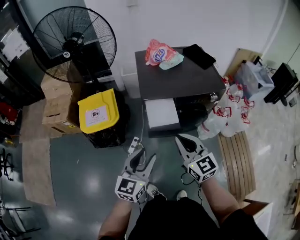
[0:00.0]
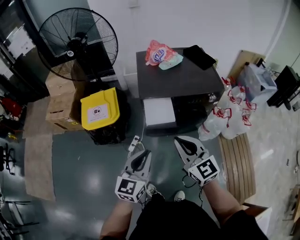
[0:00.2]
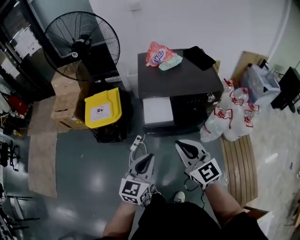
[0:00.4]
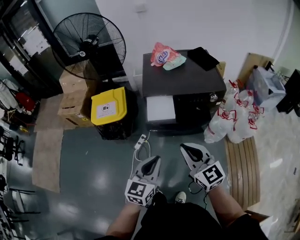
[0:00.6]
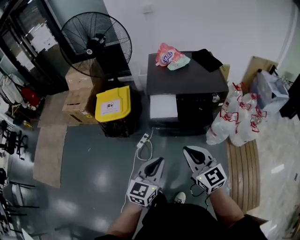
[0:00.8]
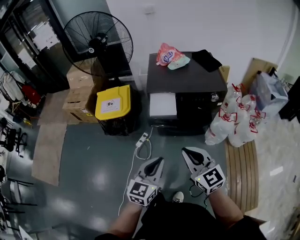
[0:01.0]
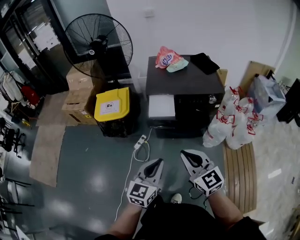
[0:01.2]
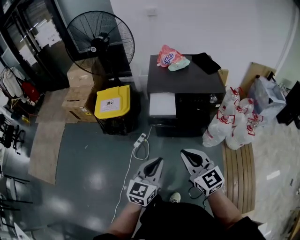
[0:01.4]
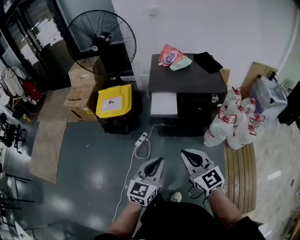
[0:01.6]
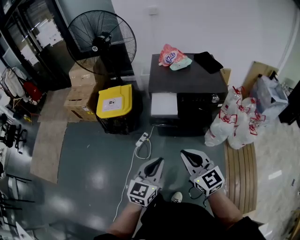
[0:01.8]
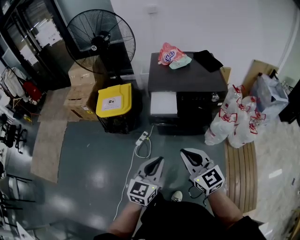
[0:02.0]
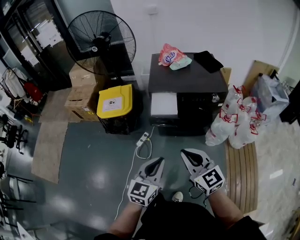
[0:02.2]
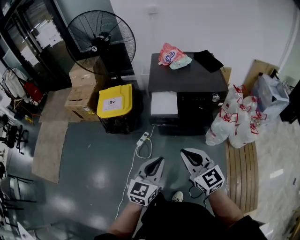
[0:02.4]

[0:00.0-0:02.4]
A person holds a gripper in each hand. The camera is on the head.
0:00.0 to 0:01.2: The two grippers go approximately 20 cm backward and to the right. The left gripper closes.
0:01.2 to 0:02.4: Both grippers stay about where they are.

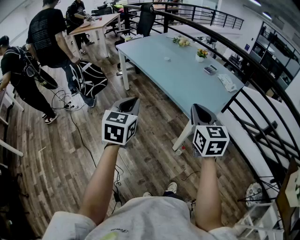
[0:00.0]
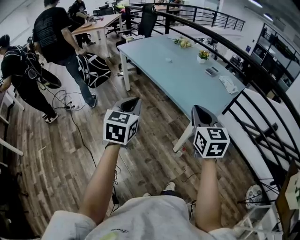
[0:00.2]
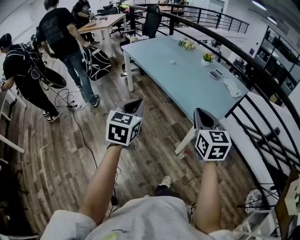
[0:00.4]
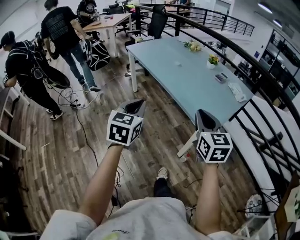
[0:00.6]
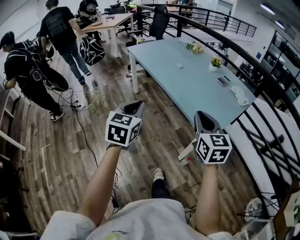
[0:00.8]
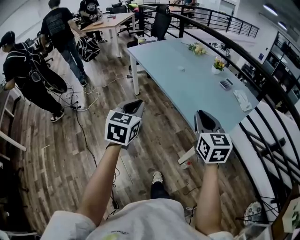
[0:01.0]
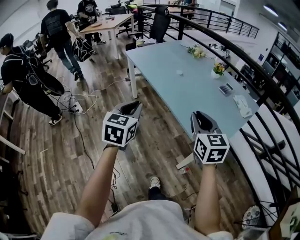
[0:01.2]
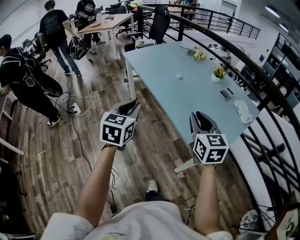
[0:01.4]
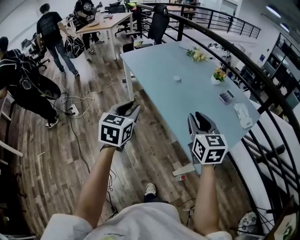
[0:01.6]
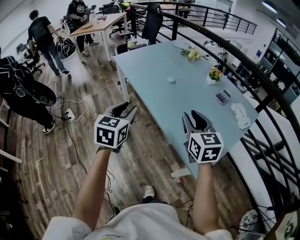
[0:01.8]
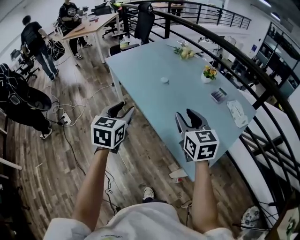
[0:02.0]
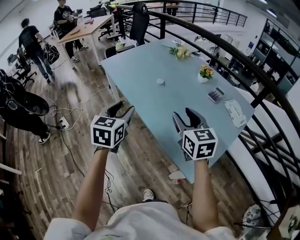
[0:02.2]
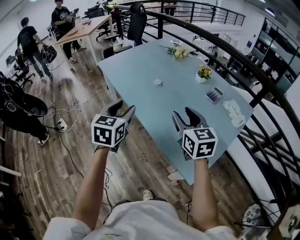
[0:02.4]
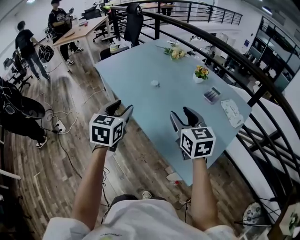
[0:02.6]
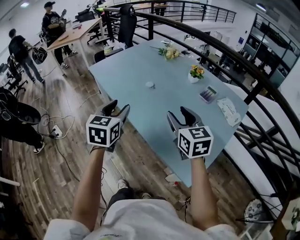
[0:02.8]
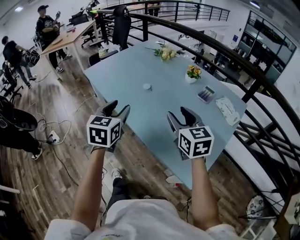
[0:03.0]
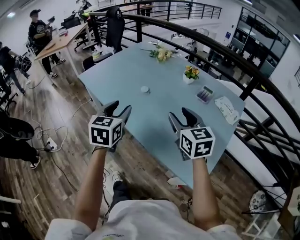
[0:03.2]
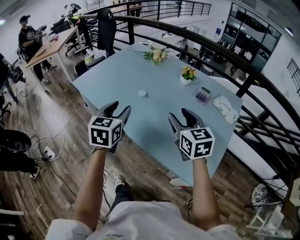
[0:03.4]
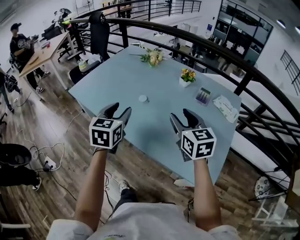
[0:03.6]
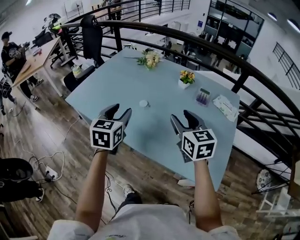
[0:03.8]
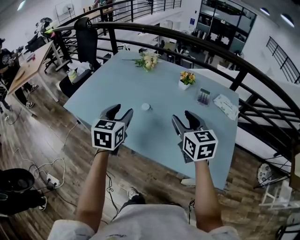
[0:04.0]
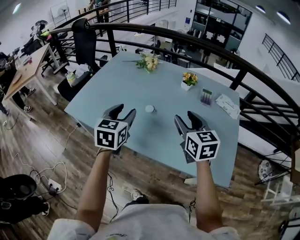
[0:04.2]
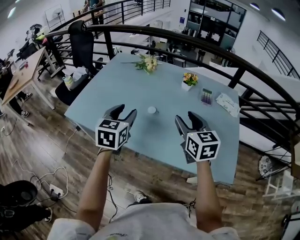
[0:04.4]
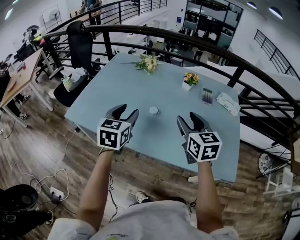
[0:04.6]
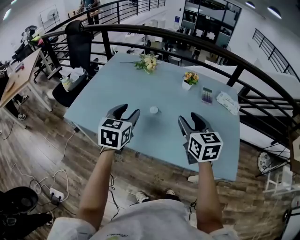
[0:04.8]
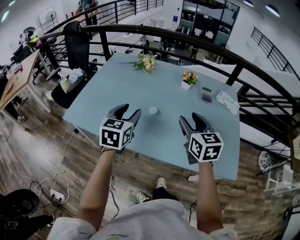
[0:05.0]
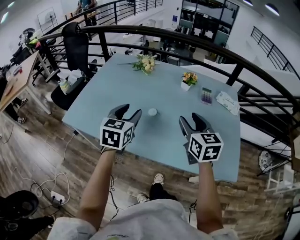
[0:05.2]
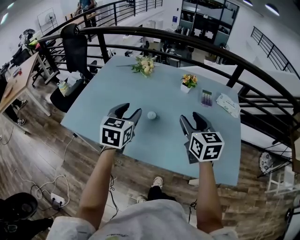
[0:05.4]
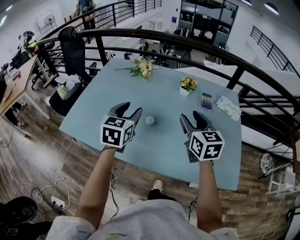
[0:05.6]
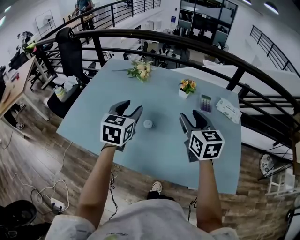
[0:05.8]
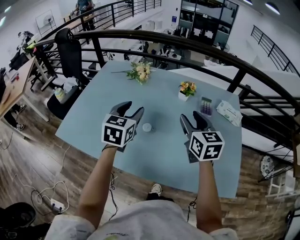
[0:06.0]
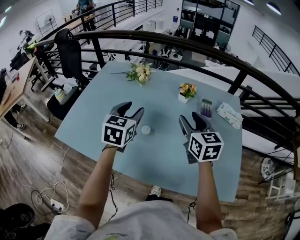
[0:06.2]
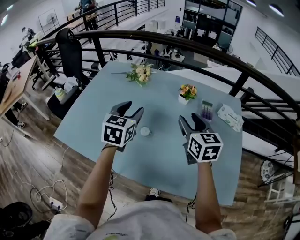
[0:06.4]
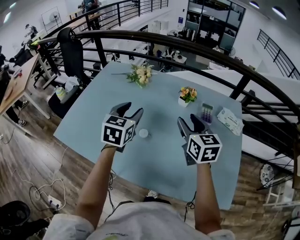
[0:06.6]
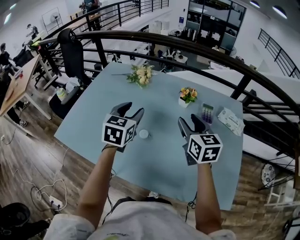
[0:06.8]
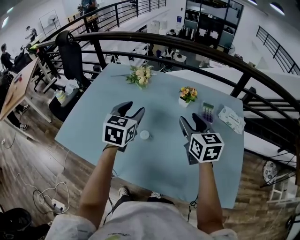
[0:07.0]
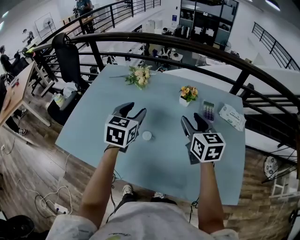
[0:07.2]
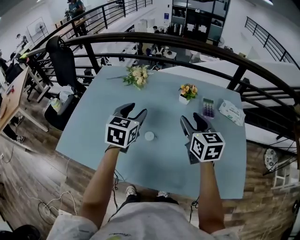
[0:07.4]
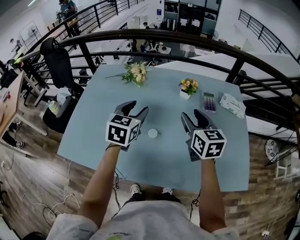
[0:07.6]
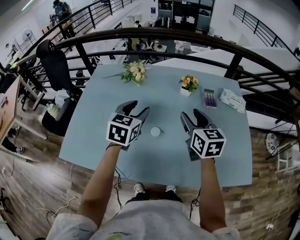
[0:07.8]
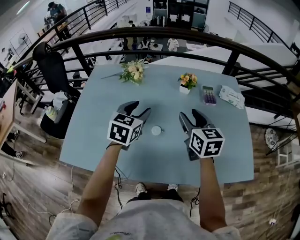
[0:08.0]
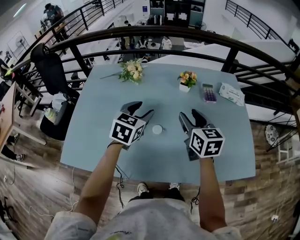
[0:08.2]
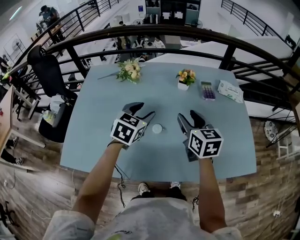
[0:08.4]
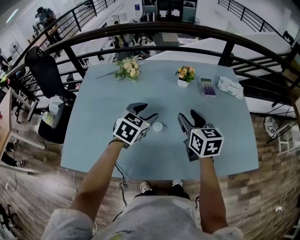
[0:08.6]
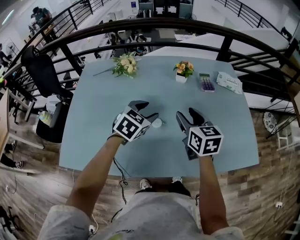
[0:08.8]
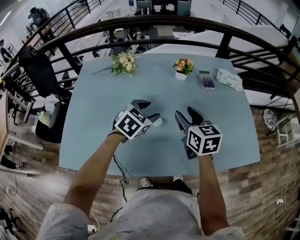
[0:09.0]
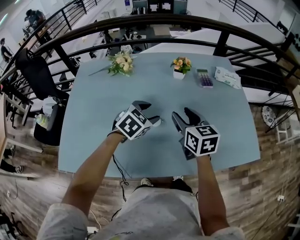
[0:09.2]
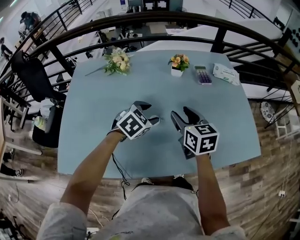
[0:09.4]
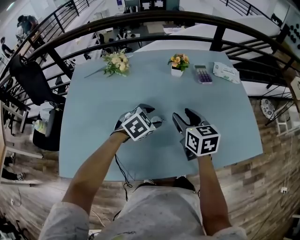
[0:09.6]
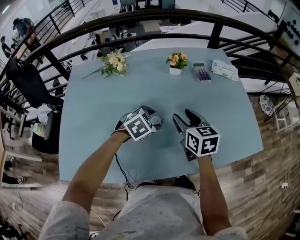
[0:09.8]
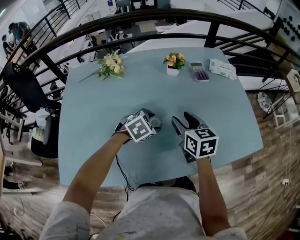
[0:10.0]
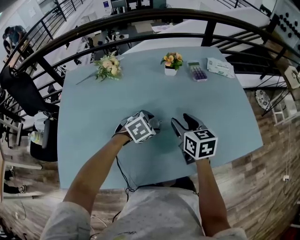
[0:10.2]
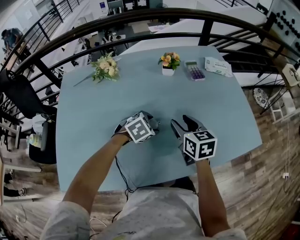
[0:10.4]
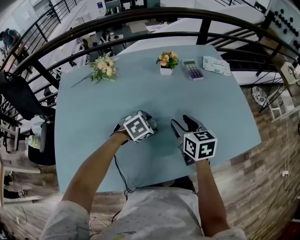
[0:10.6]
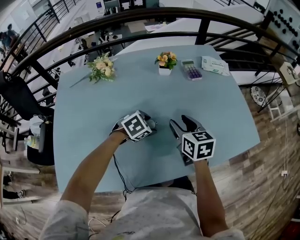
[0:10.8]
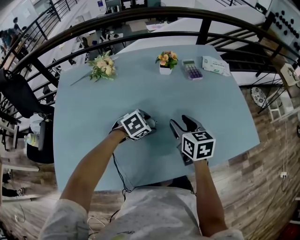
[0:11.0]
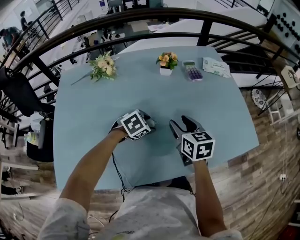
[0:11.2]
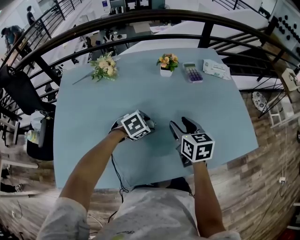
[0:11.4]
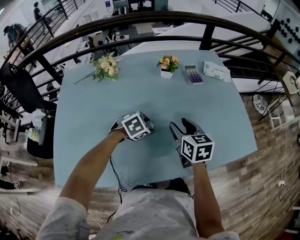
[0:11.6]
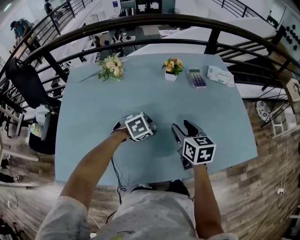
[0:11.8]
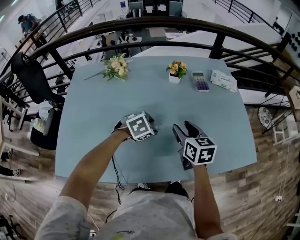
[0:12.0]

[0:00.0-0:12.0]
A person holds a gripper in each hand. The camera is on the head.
0:00.0 to 0:01.6: The grippers both shift forward by some 25 cm. The left gripper opens up.
0:01.6 to 0:03.0: The grippers both shift forward and to the right by approximately 15 cm. The left gripper opens; the right gripper opens up.
0:03.0 to 0:04.4: The left gripper changes place by approximately 25 cm, and rotates approximately 30 degrees; the right gripper moves approximately 15 cm, and swivels some 30 degrees.
0:04.4 to 0:06.0: Both grippers move forward, some 15 cm.
0:06.0 to 0:07.6: The left gripper shifts roughly 5 cm forward.
0:07.6 to 0:09.0: The right gripper travels downward by roughly 5 cm; the left gripper heads downward, covering some 10 cm, and swivels about 40 degrees.
0:09.0 to 0:10.4: The right gripper travels downward by approximately 5 cm. Meanwhile the left gripper travels downward by roughly 10 cm, and turns by about 30 degrees.
0:10.4 to 0:12.0: The grippers stay close to where they were, moving slightly.

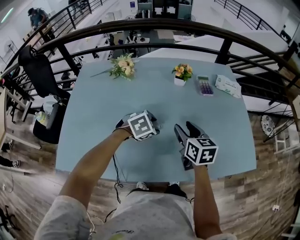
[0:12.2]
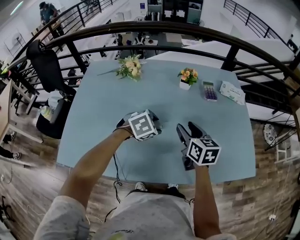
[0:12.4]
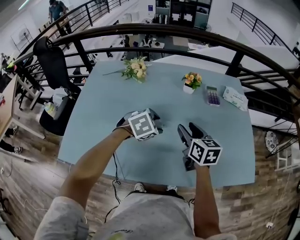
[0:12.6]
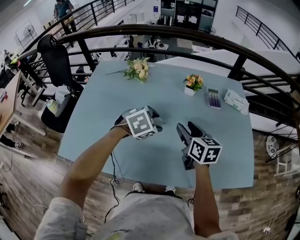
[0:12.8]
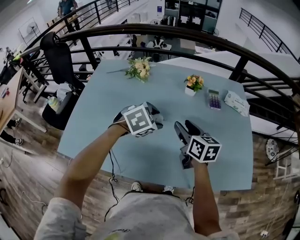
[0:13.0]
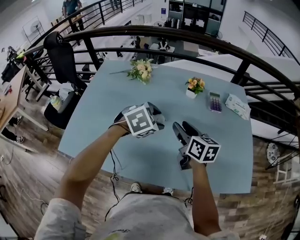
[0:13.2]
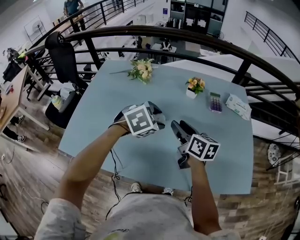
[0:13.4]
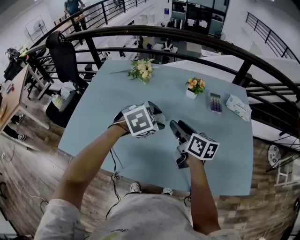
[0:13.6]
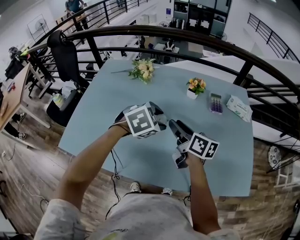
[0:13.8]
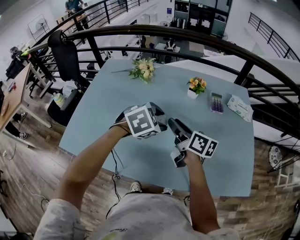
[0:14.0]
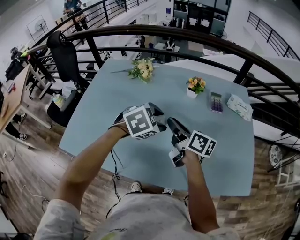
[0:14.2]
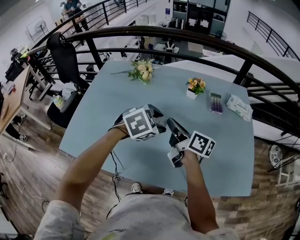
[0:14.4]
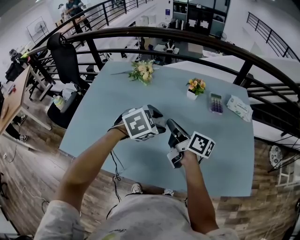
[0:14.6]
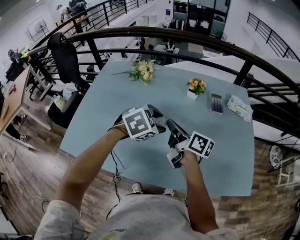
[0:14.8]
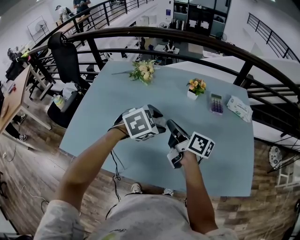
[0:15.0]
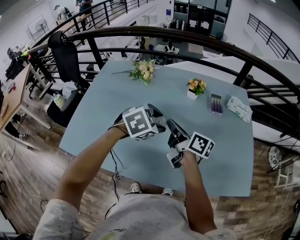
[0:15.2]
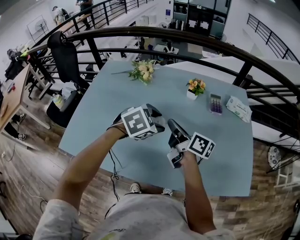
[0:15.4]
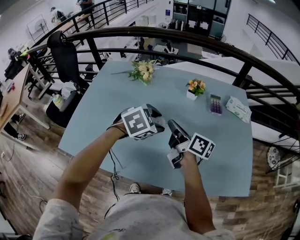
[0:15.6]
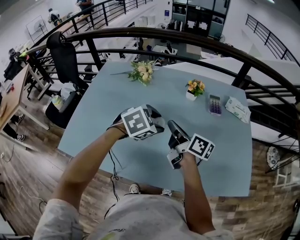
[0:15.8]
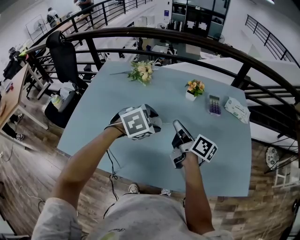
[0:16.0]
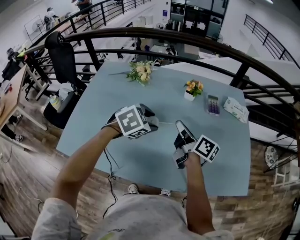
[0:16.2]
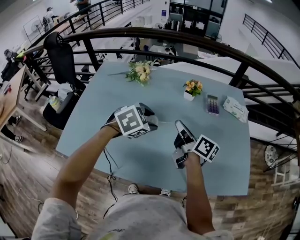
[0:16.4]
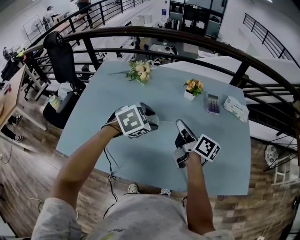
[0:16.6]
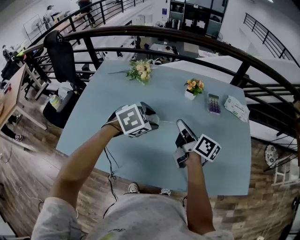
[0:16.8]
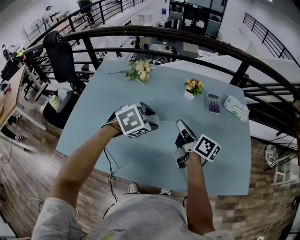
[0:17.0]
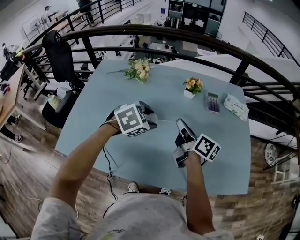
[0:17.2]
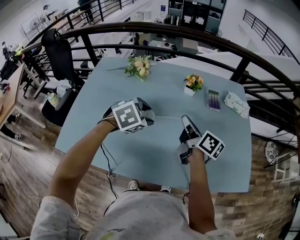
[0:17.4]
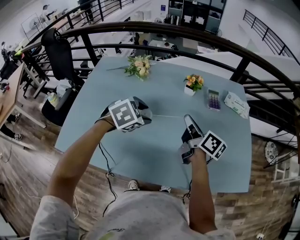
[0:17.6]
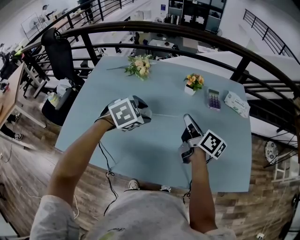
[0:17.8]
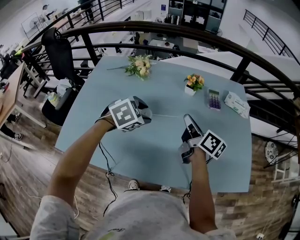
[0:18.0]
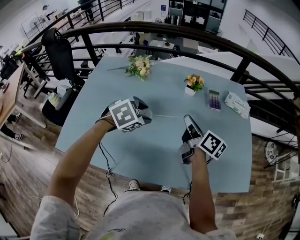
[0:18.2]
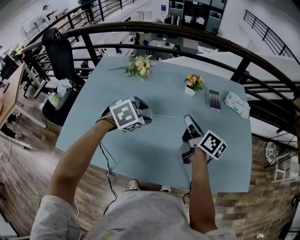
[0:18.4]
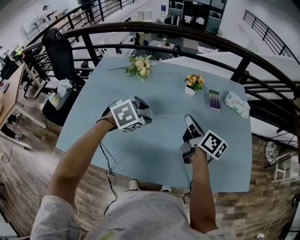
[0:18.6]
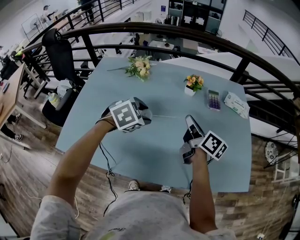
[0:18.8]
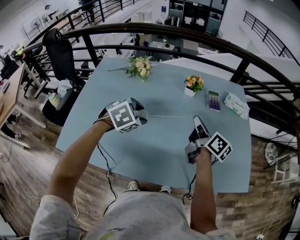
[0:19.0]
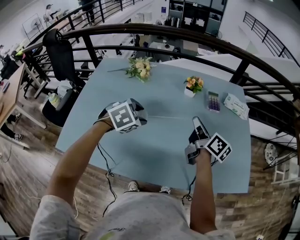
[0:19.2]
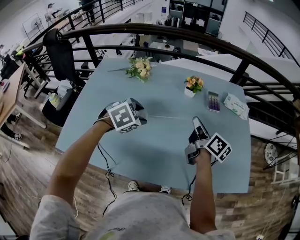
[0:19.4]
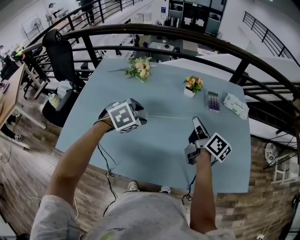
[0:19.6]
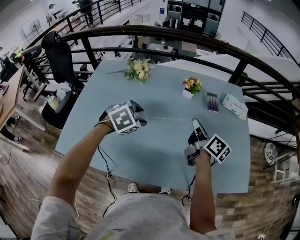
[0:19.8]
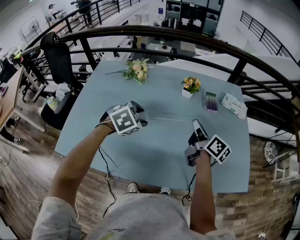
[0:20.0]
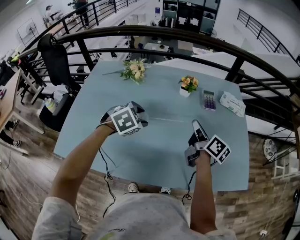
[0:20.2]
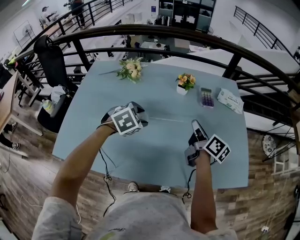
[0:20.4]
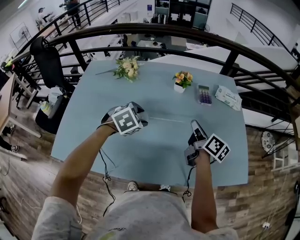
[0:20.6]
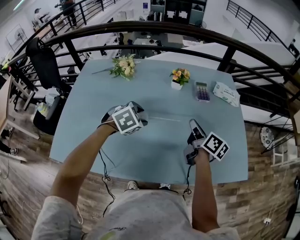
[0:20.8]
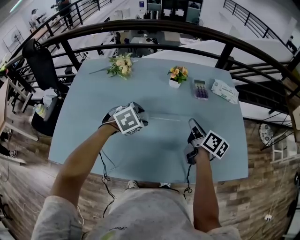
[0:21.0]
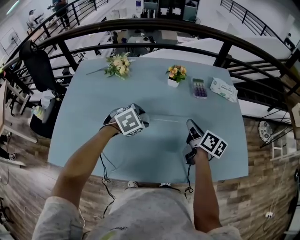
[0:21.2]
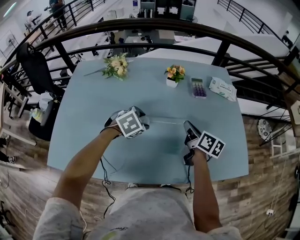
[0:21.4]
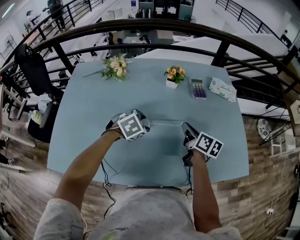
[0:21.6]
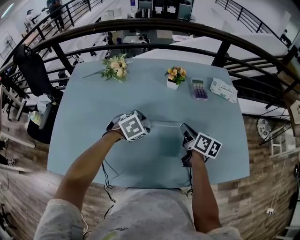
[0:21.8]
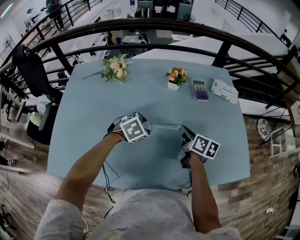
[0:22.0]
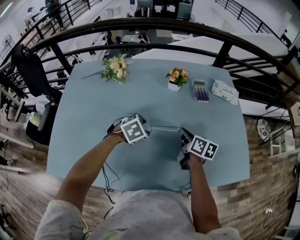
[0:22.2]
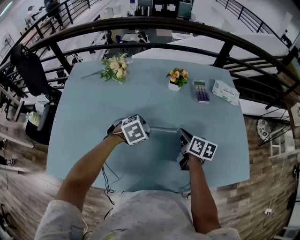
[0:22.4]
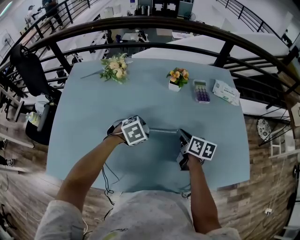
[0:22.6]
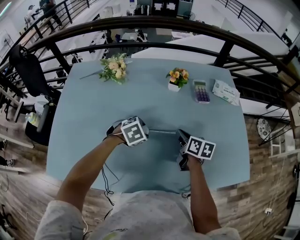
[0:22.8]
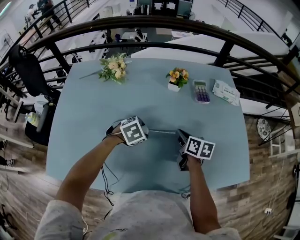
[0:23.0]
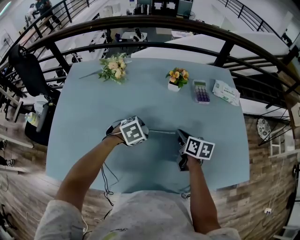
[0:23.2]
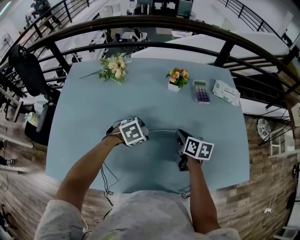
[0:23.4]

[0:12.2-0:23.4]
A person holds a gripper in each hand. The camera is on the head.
0:12.2 to 0:13.8: The right gripper moves roughly 5 cm, and turns by some 30 degrees. Meanwhile the left gripper is displaced upward by roughly 10 cm.
0:13.8 to 0:15.4: The right gripper closes its fingers.
0:15.4 to 0:17.0: The grippers stay close to where they were, moving slightly.
0:17.0 to 0:18.6: The grippers stay close to where they were, moving slightly.
0:18.6 to 0:20.2: The right gripper goes approximately 5 cm to the right.
0:20.2 to 0:21.8: The two grippers go some 10 cm downward.
0:21.8 to 0:23.4: The right gripper changes place by approximately 5 cm.
